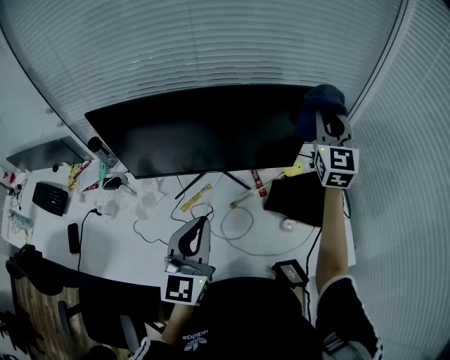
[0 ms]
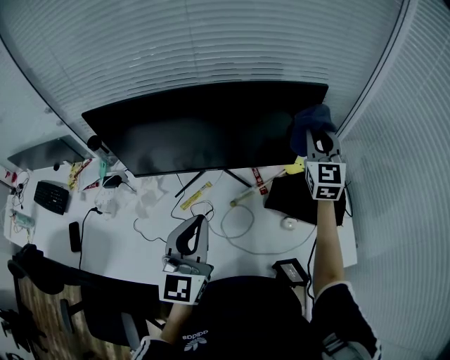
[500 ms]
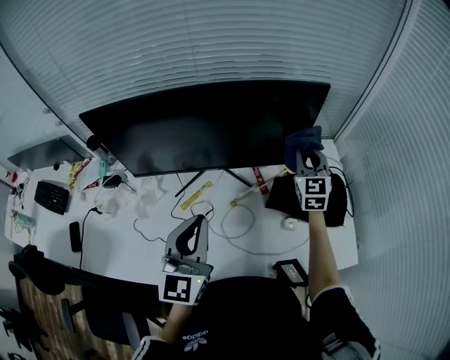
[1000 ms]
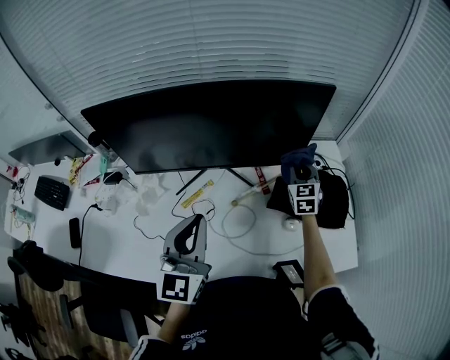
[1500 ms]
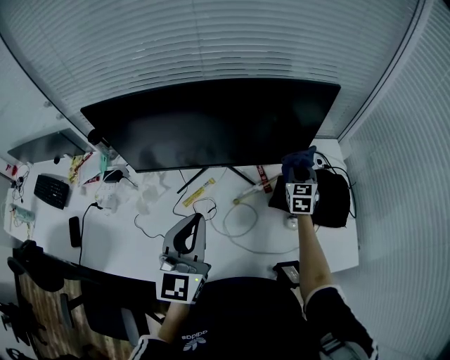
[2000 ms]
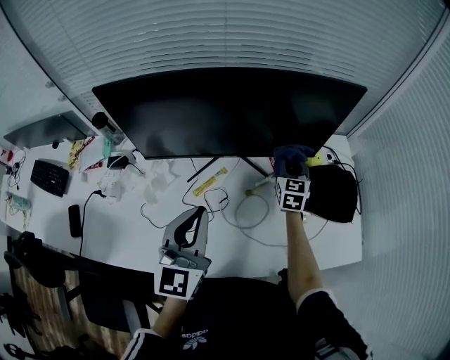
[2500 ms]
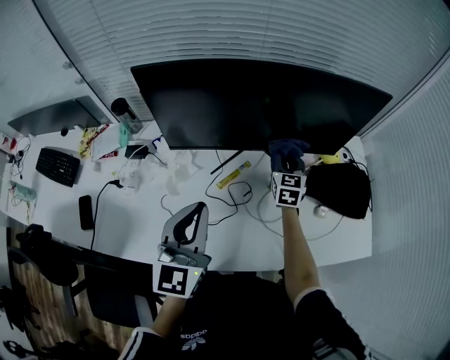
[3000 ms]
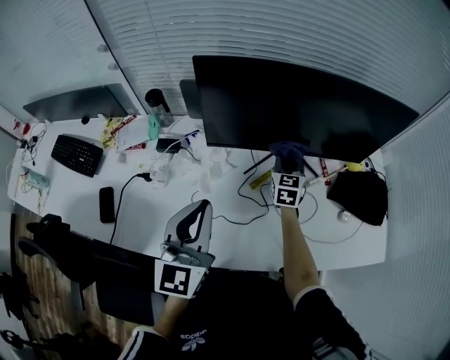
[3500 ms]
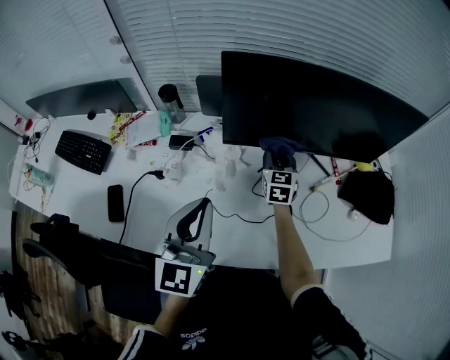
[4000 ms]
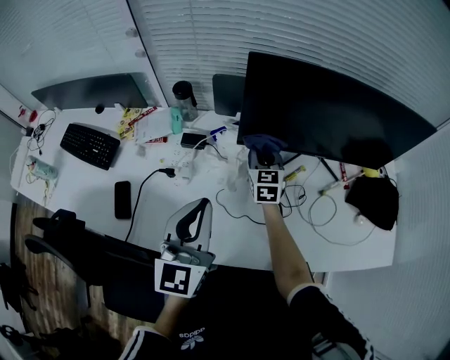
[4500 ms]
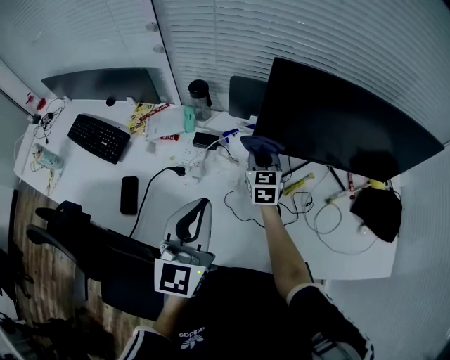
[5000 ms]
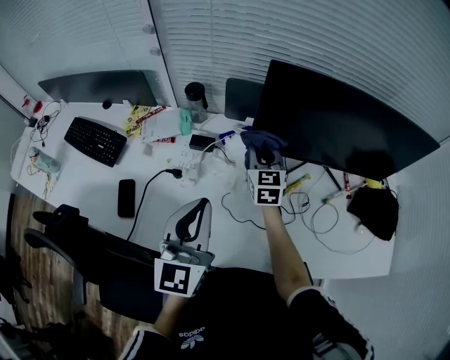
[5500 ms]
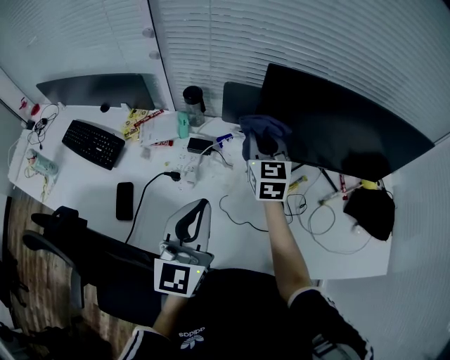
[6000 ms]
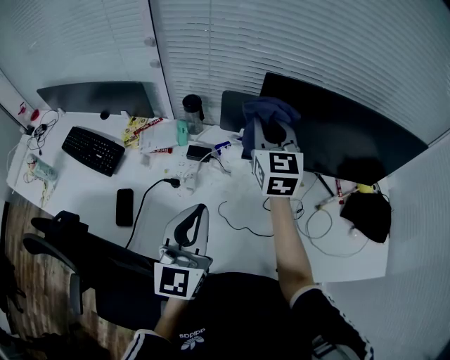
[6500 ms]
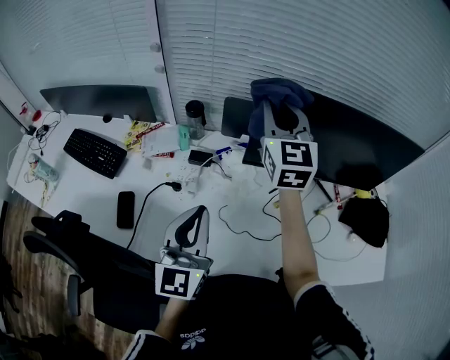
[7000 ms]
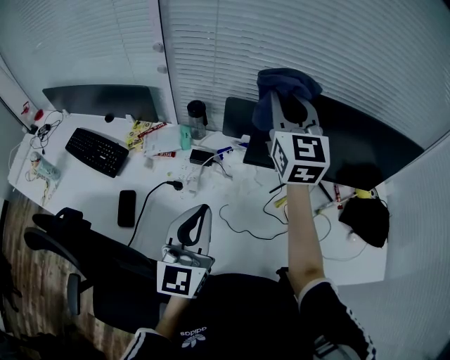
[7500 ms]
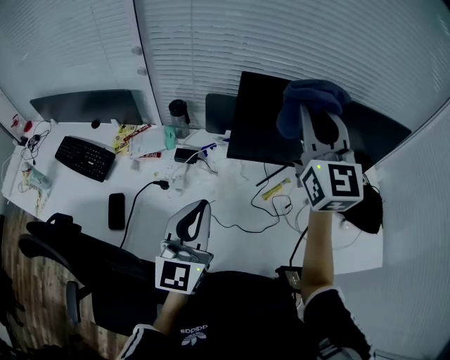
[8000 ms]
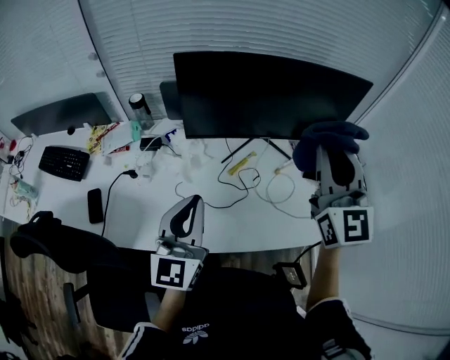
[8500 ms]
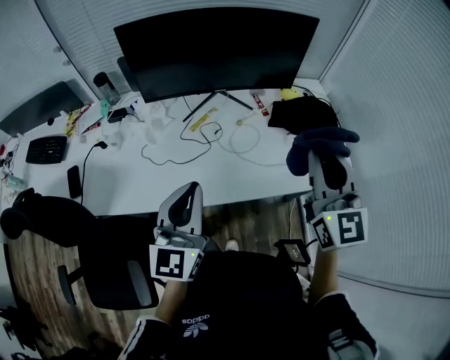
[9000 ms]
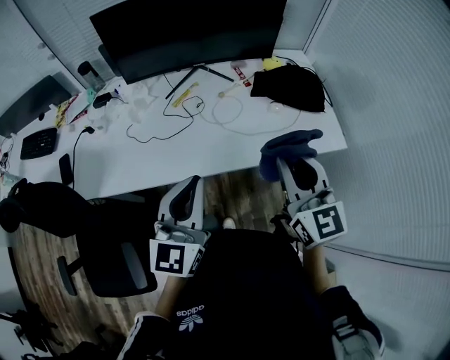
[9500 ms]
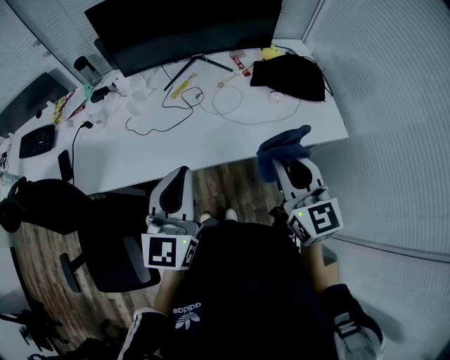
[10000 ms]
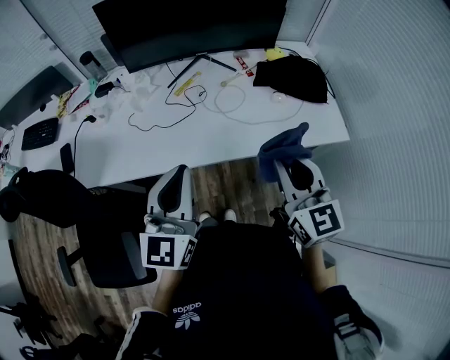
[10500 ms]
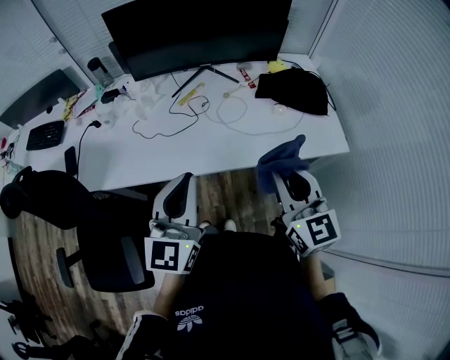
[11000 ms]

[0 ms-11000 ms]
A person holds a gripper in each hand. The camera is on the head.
0 ms to 2000 ms: The right gripper heads downward, covering about 30 cm, and rotates about 30 degrees.
2000 ms to 3500 ms: The two grippers go approximately 30 cm to the left.
3500 ms to 5500 ms: The left gripper goes some 10 cm to the left; the right gripper shifts approximately 25 cm to the left.
5500 ms to 7500 ms: The right gripper travels upward by roughly 30 cm, and swivels some 30 degrees.
7500 ms to 9000 ms: The right gripper goes some 60 cm to the right and backward; the left gripper shifts roughly 35 cm to the right and backward.
9000 ms to 11000 ms: The right gripper shifts approximately 15 cm backward and downward; the left gripper heads backward, covering some 10 cm.

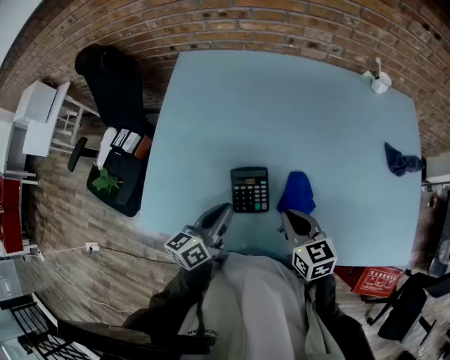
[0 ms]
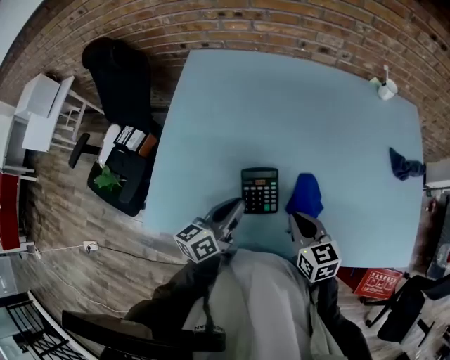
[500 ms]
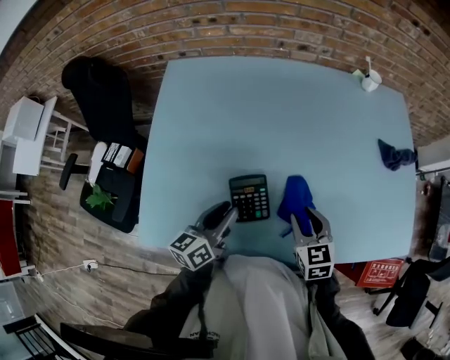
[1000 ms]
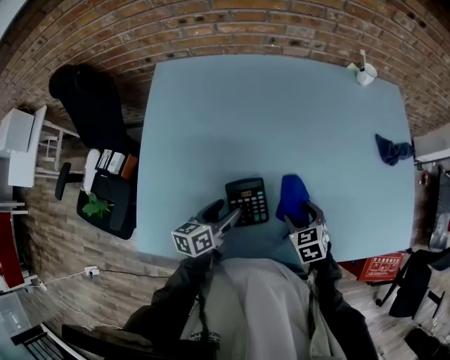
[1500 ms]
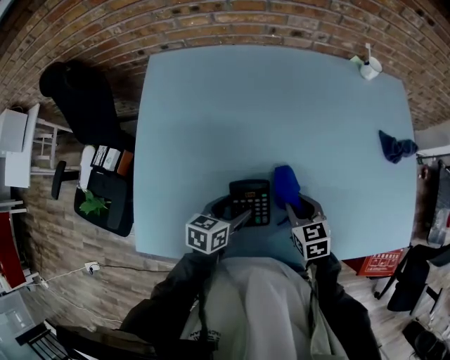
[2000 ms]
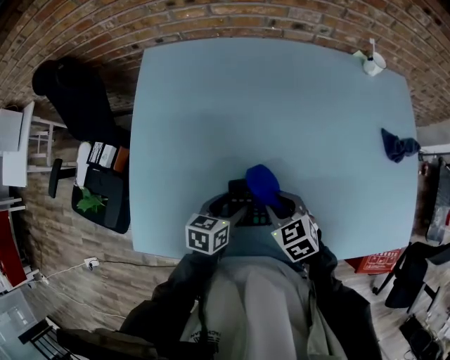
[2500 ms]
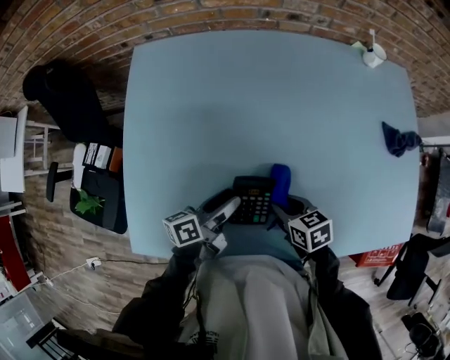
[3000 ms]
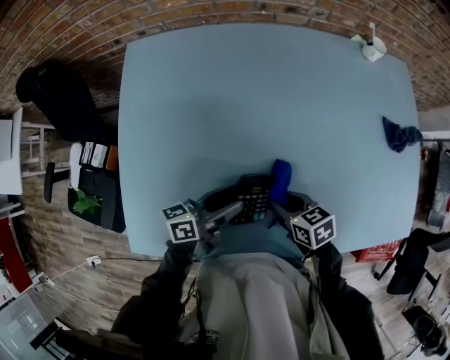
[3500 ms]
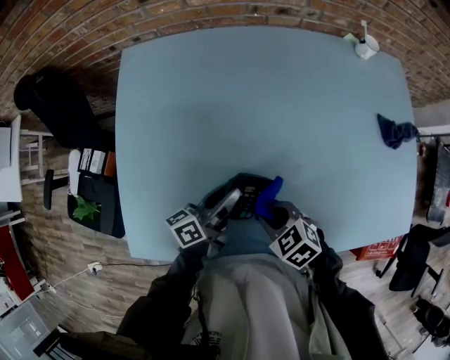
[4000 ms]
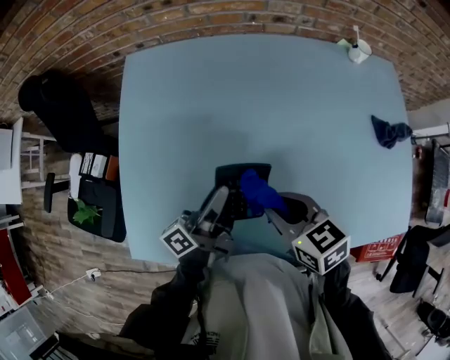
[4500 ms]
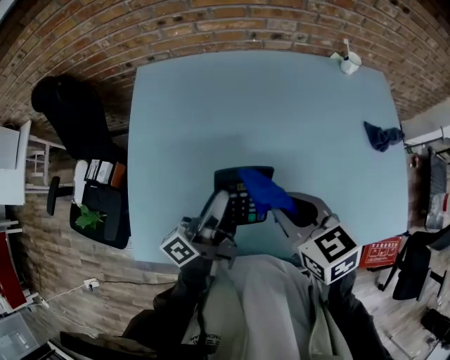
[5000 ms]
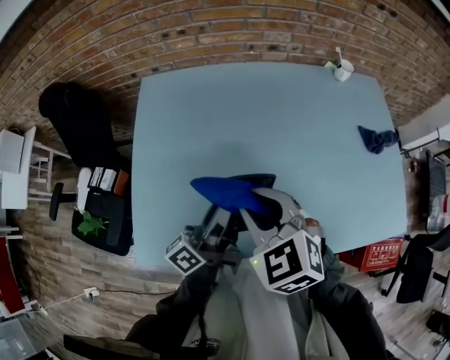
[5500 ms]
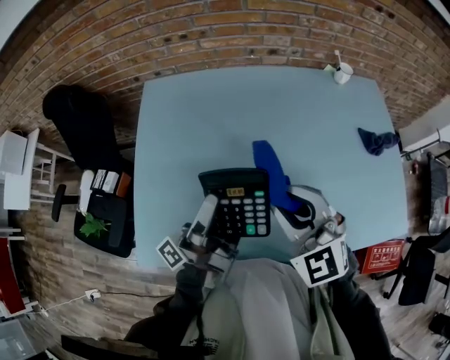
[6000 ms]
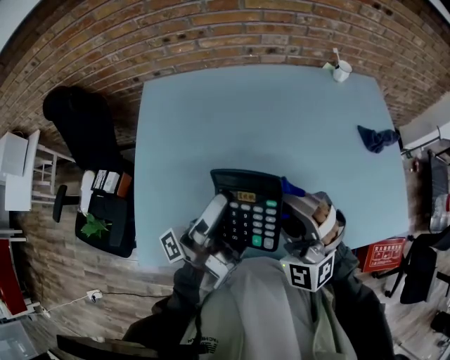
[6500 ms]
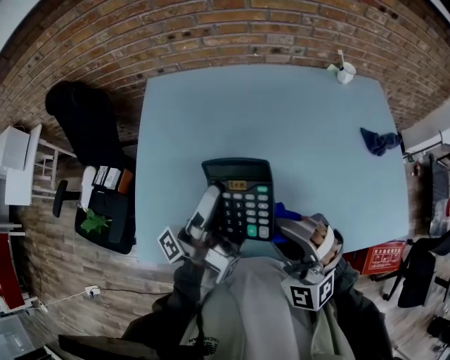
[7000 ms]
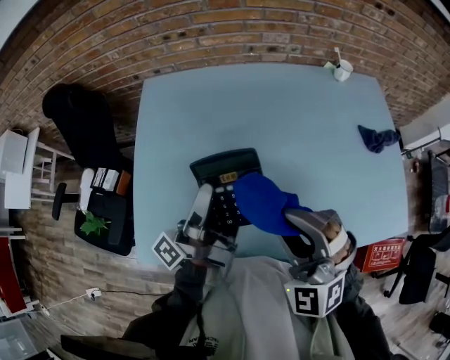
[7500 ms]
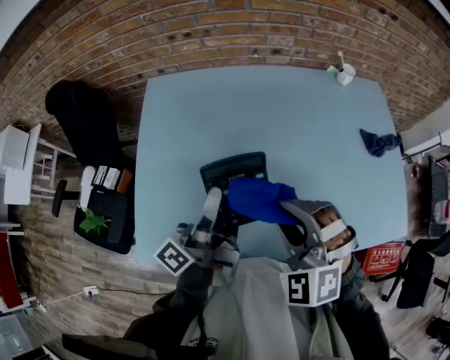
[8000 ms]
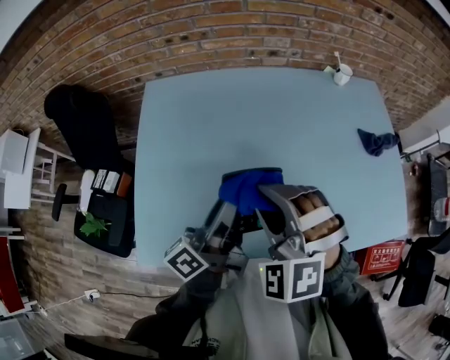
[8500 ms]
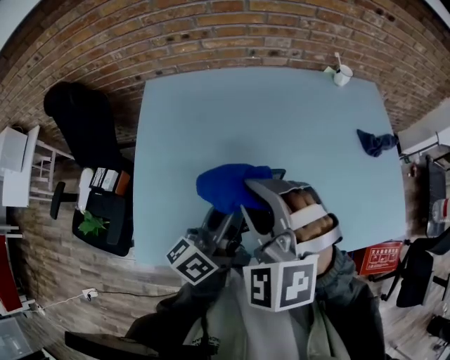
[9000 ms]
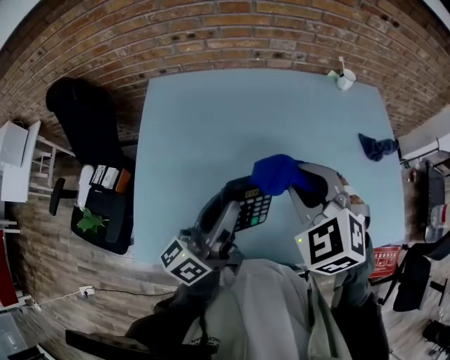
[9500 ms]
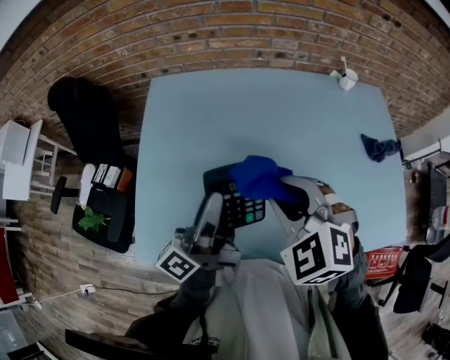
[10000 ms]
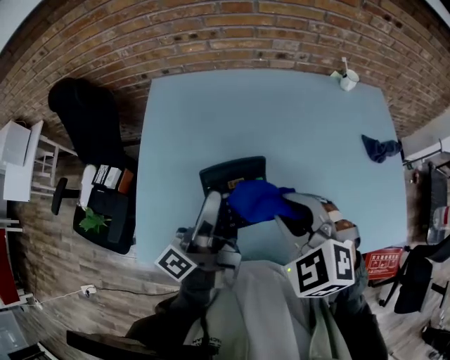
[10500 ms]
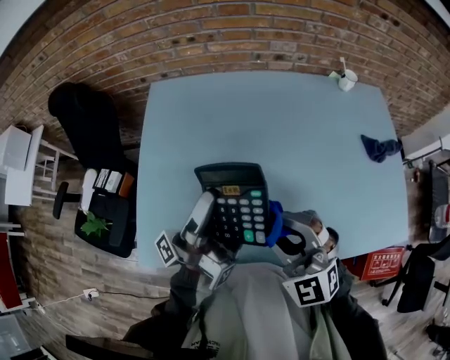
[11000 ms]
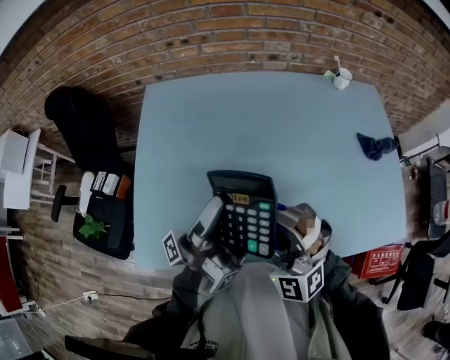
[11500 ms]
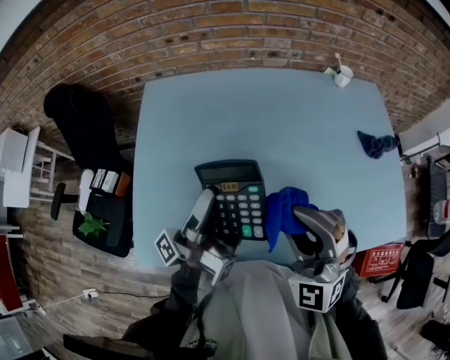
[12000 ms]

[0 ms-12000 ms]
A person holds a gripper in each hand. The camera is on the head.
0 ms to 2000 ms: The right gripper is displaced downward and forward by roughly 10 cm, and opens its fingers; the left gripper shifts roughly 10 cm downward, rotates approximately 30 degrees, and opens its fingers.
2000 ms to 4000 ms: The left gripper shifts about 5 cm forward, tips its fingers upward by about 30 degrees, and closes its fingers, while the right gripper is displaced to the left by approximately 5 cm, and rotates roughly 30 degrees.
4000 ms to 6000 ms: The two grippers go some 20 cm upward. The right gripper tilts its fingers roughly 40 degrees upward. Meanwhile the left gripper points its fingers roughly 40 degrees further upward.
6000 ms to 8000 ms: The right gripper changes its angle by roughly 30 degrees.
8000 ms to 10000 ms: The right gripper moves left and right over roughly 10 cm, changing direction 2 times.
10000 ms to 12000 ms: The left gripper rotates around the line of its fingers by roughly 40 degrees, counterclockwise from behind. Meanwhile the right gripper is displaced backward by about 5 cm, and tips its fingers upward by some 30 degrees.

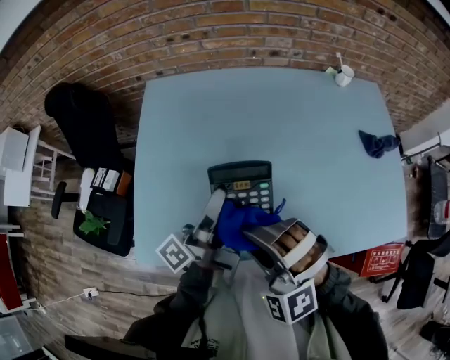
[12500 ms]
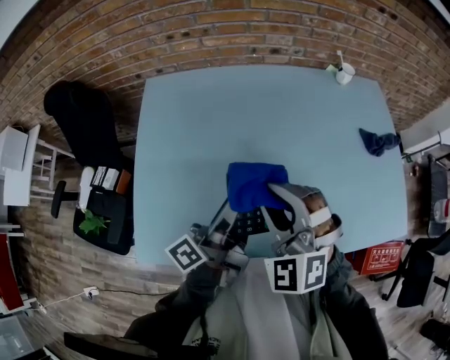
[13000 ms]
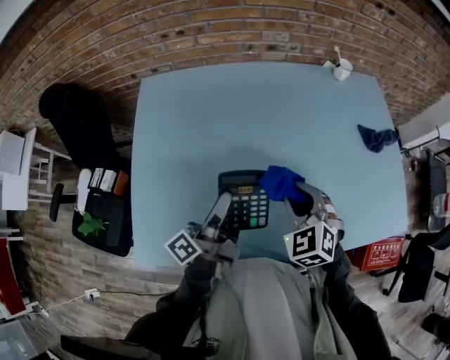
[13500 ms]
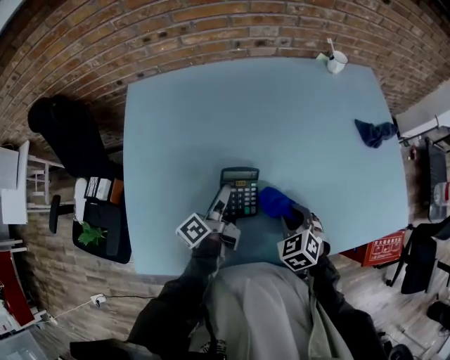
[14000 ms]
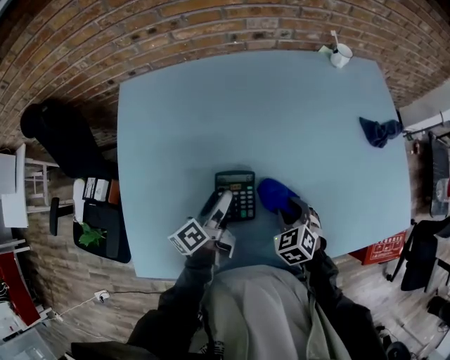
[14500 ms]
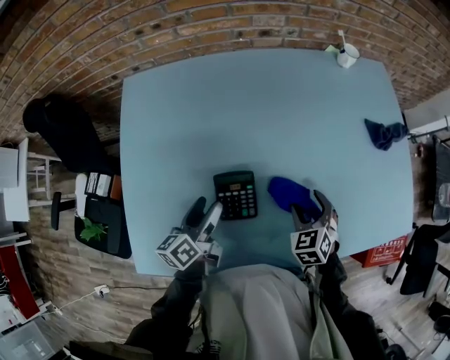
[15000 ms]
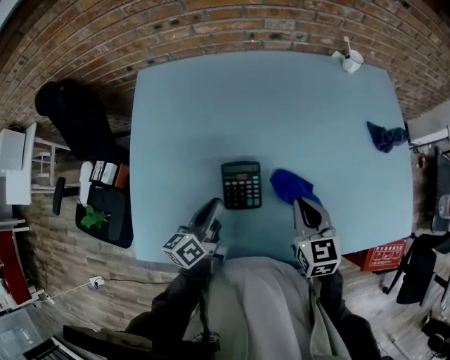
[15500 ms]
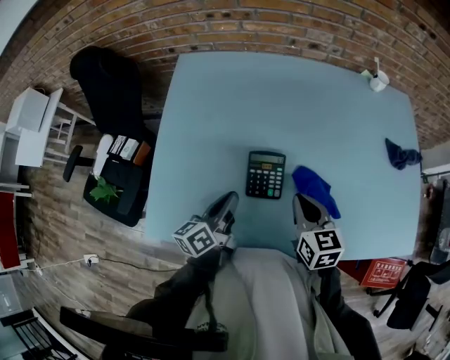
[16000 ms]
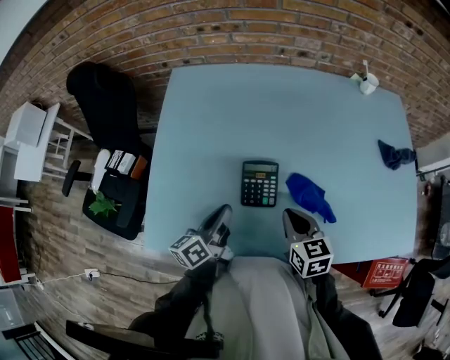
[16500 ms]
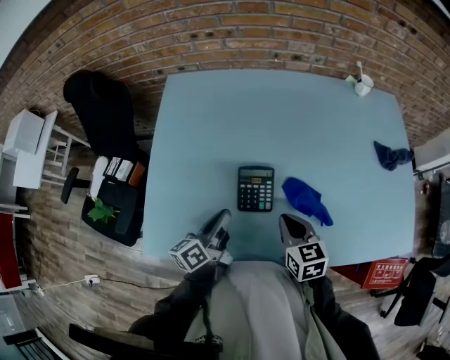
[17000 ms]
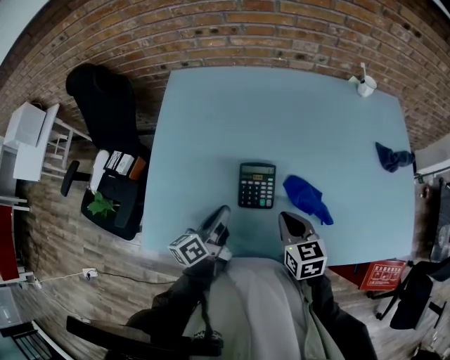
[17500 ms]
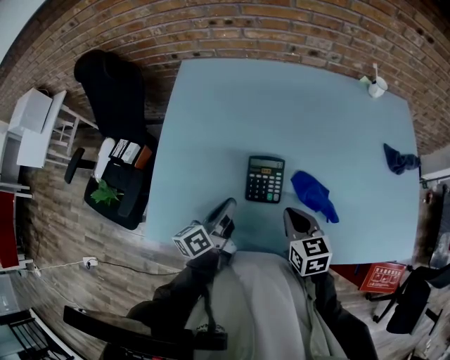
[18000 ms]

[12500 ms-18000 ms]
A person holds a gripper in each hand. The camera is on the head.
12500 ms to 14500 ms: The right gripper travels downward and to the right by approximately 30 cm, and rotates around the line of its fingers by roughly 50 degrees, clockwise from behind; the left gripper travels downward by about 20 cm, points its fingers about 30 degrees further downward, and opens.
14500 ms to 16000 ms: The left gripper moves backward, some 10 cm, and closes, while the right gripper is displaced upward and to the left by approximately 15 cm, swivels about 40 degrees, and closes its fingers.
16000 ms to 18000 ms: The grippers move only a little.
